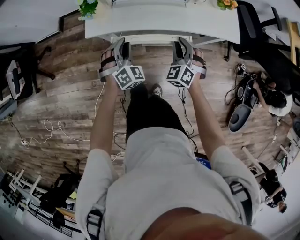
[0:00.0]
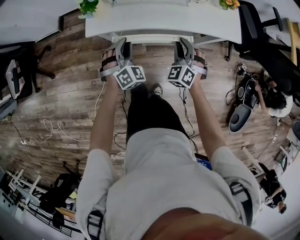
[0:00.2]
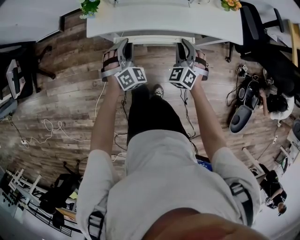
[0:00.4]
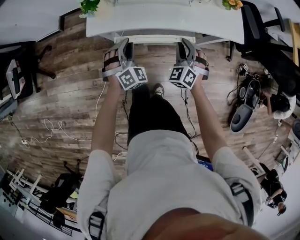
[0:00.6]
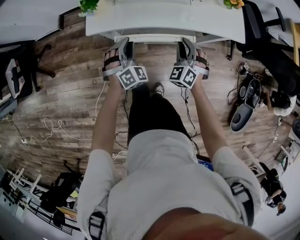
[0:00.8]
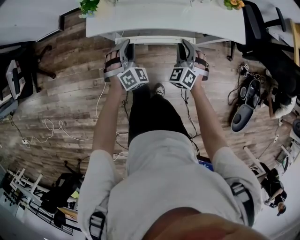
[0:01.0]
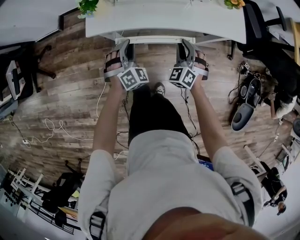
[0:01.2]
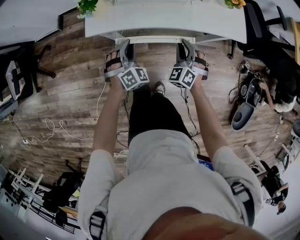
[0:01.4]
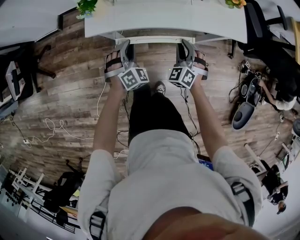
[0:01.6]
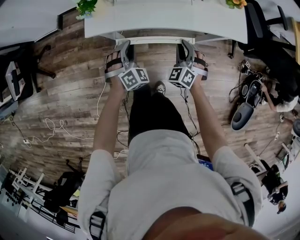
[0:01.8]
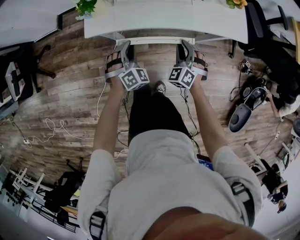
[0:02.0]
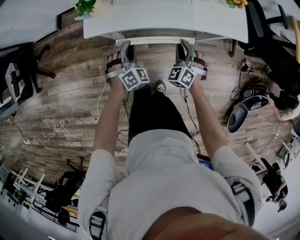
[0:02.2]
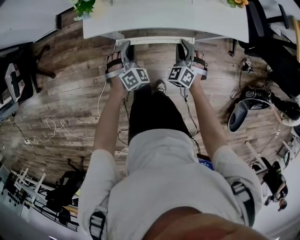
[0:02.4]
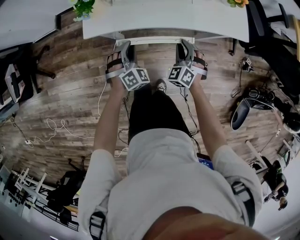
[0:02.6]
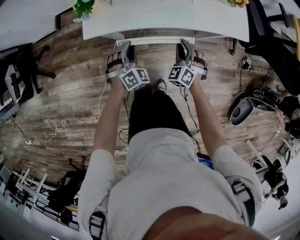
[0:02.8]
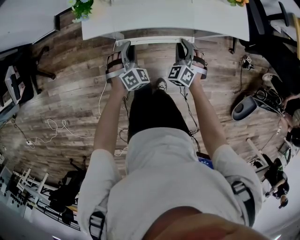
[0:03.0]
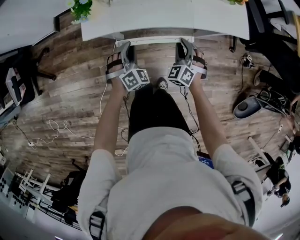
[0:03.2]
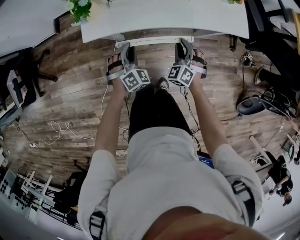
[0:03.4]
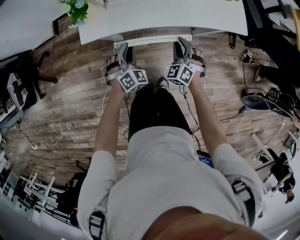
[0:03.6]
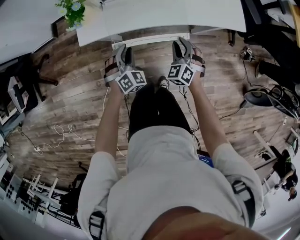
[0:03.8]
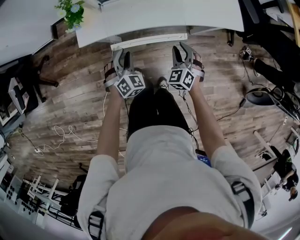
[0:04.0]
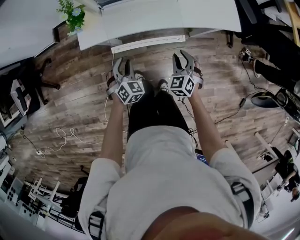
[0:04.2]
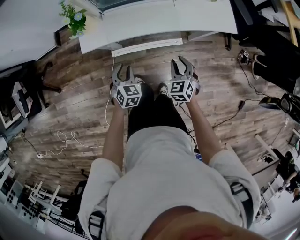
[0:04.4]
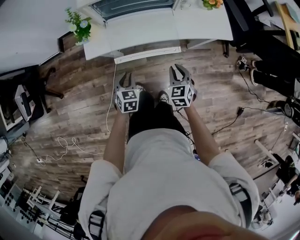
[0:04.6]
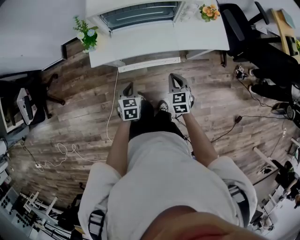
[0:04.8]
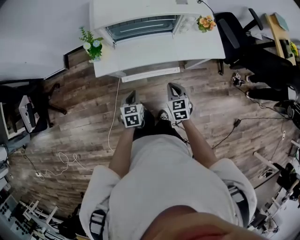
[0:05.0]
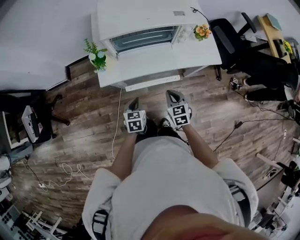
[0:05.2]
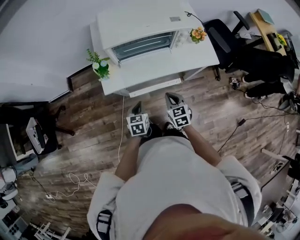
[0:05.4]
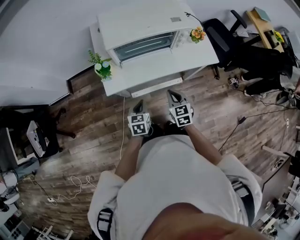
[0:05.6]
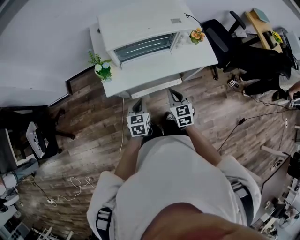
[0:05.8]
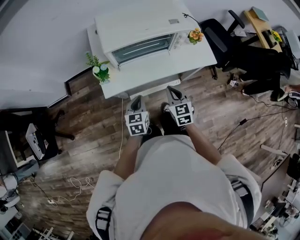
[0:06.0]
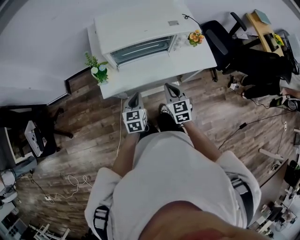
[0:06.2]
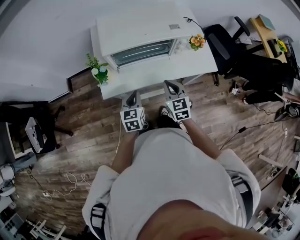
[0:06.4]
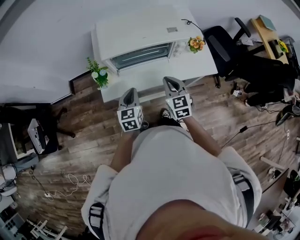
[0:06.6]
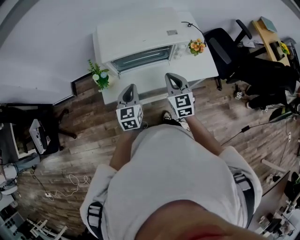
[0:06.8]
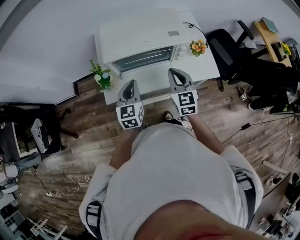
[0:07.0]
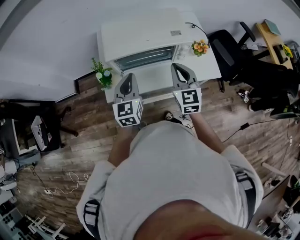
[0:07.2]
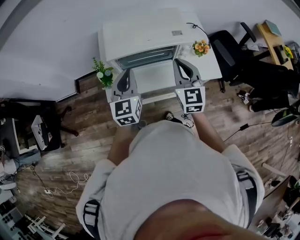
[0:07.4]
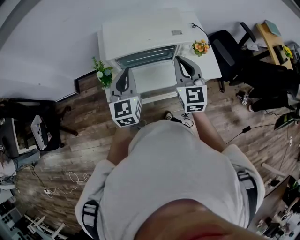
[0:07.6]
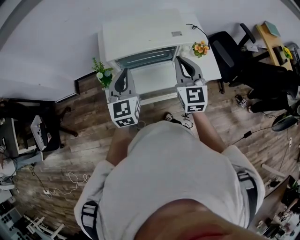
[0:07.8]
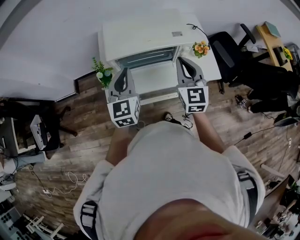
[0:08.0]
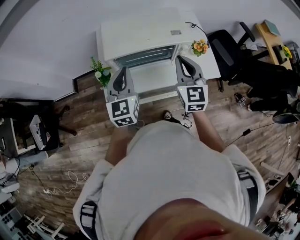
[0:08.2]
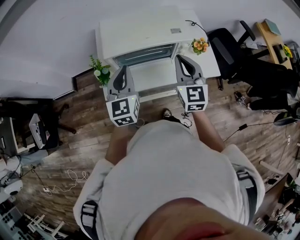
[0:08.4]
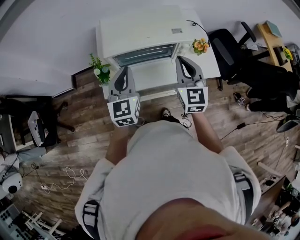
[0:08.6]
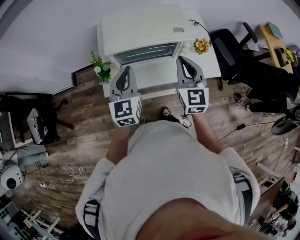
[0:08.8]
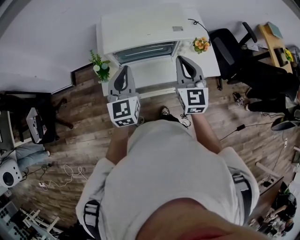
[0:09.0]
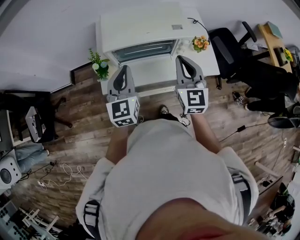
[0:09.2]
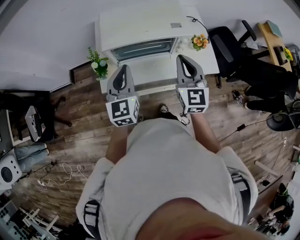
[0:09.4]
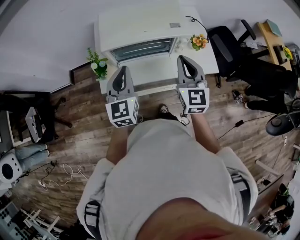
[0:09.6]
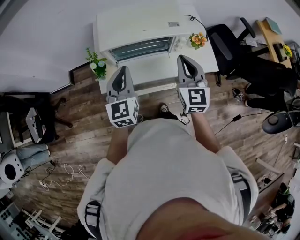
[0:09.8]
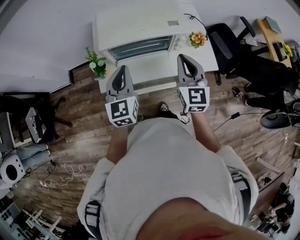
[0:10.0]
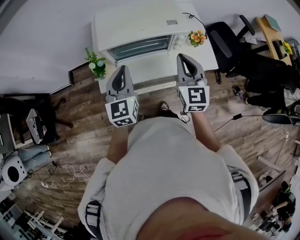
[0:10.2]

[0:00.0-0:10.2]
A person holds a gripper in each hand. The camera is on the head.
0:00.0 to 0:01.4: The grippers stay close to where they were, moving slightly.
0:01.4 to 0:03.0: There are only small adjustments of the grippers.
0:03.0 to 0:04.4: The grippers both shift backward by approximately 5 cm. The left gripper turns by some 30 degrees, while the right gripper turns by roughly 30 degrees.
0:04.4 to 0:05.8: The left gripper is displaced upward by roughly 15 cm, rotates about 30 degrees, and closes its fingers. Meanwhile the right gripper moves upward and to the left, roughly 15 cm, rotates approximately 20 degrees, and closes its fingers.
0:05.8 to 0:07.2: Both grippers travel together upward and forward, roughly 20 cm. The left gripper swivels roughly 30 degrees, while the right gripper turns by about 20 degrees.
0:07.2 to 0:10.2: The grippers make only small movements.

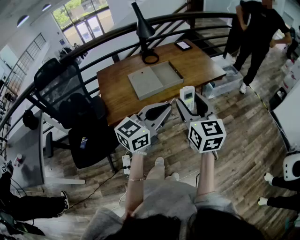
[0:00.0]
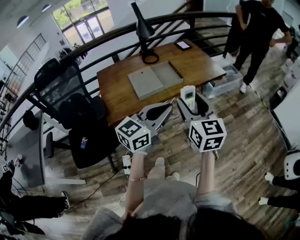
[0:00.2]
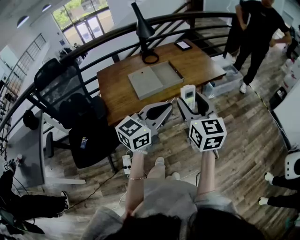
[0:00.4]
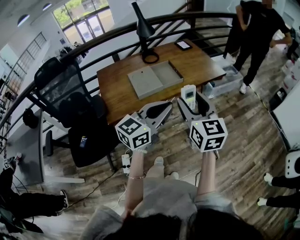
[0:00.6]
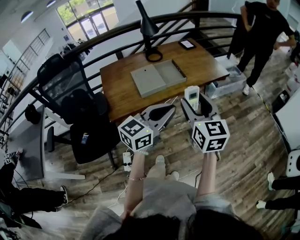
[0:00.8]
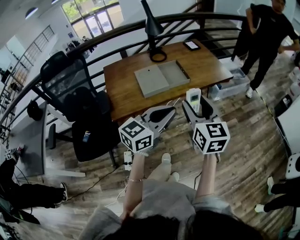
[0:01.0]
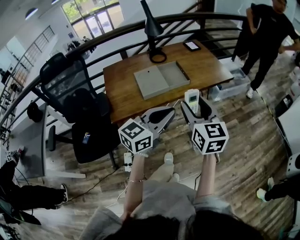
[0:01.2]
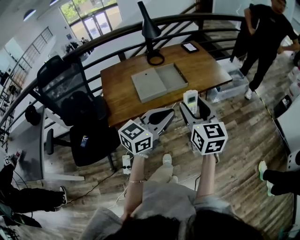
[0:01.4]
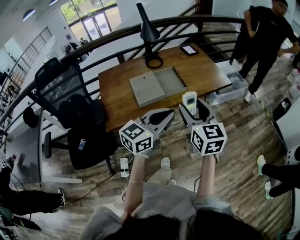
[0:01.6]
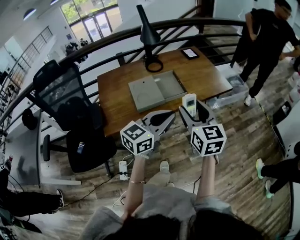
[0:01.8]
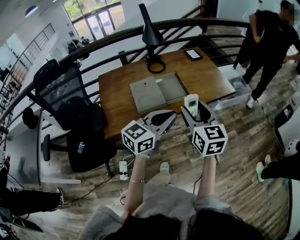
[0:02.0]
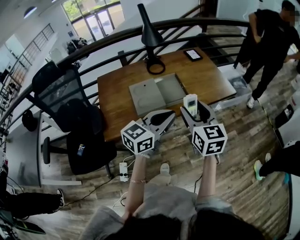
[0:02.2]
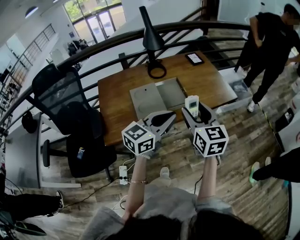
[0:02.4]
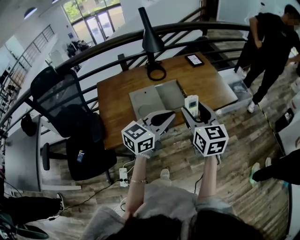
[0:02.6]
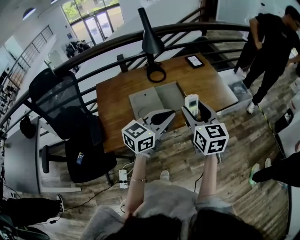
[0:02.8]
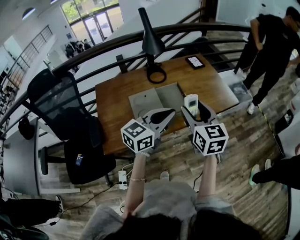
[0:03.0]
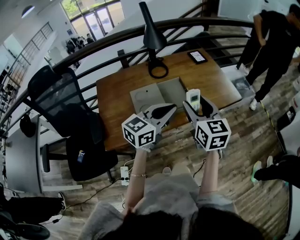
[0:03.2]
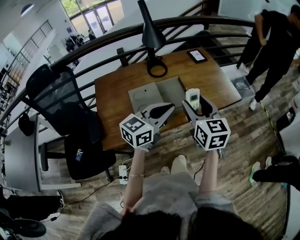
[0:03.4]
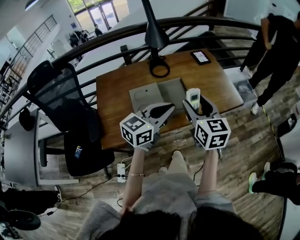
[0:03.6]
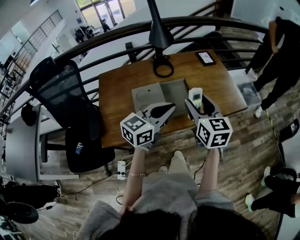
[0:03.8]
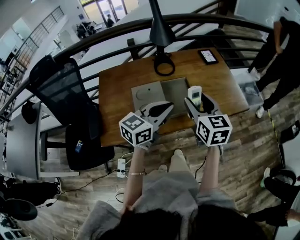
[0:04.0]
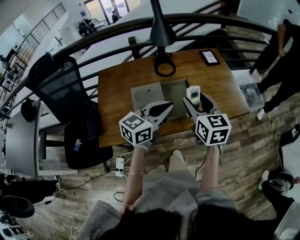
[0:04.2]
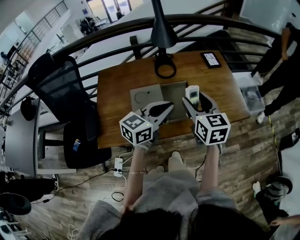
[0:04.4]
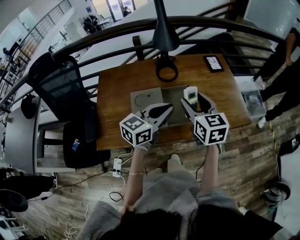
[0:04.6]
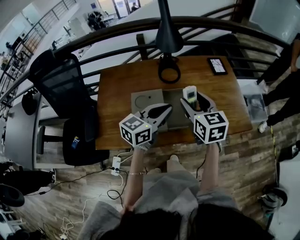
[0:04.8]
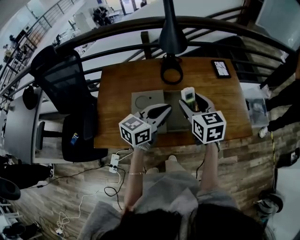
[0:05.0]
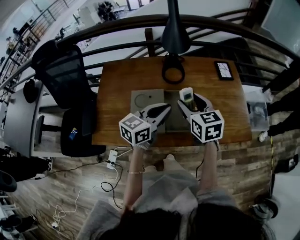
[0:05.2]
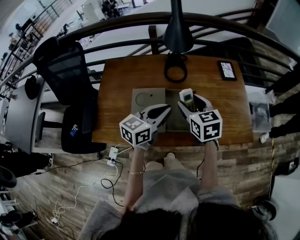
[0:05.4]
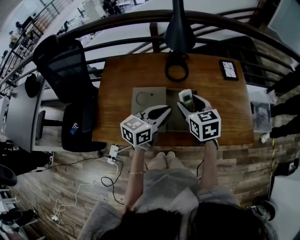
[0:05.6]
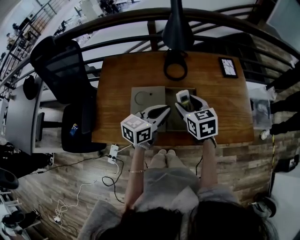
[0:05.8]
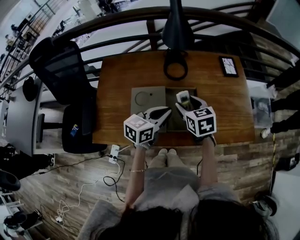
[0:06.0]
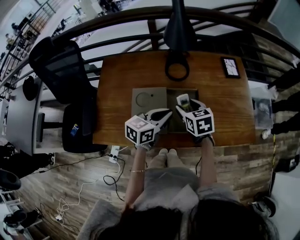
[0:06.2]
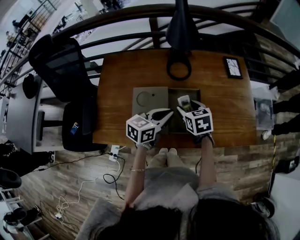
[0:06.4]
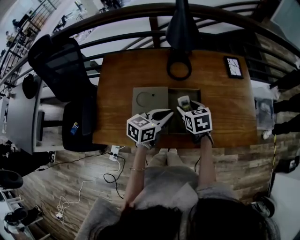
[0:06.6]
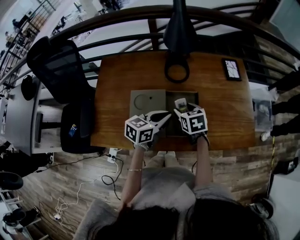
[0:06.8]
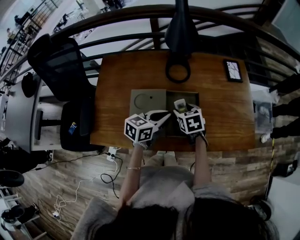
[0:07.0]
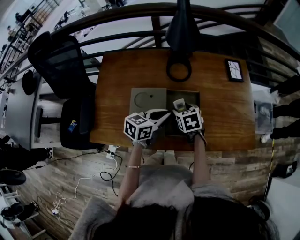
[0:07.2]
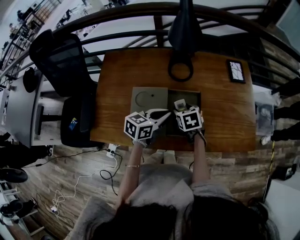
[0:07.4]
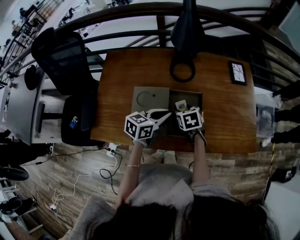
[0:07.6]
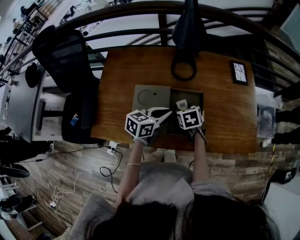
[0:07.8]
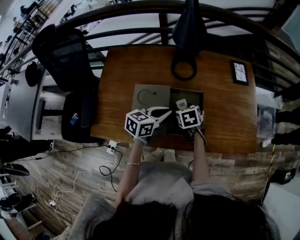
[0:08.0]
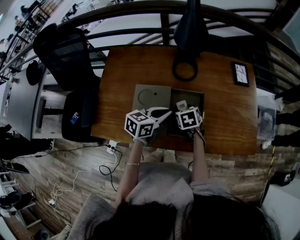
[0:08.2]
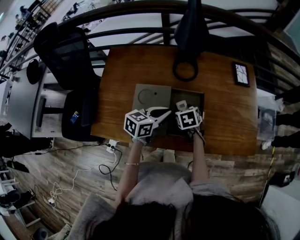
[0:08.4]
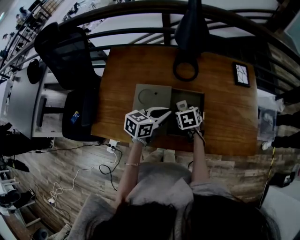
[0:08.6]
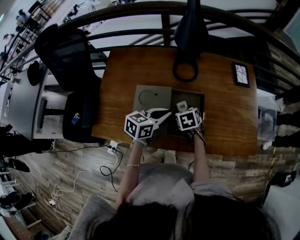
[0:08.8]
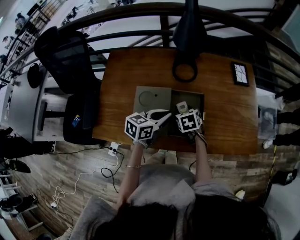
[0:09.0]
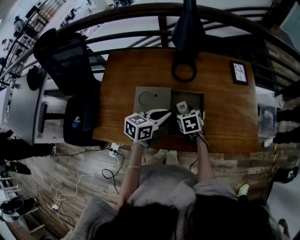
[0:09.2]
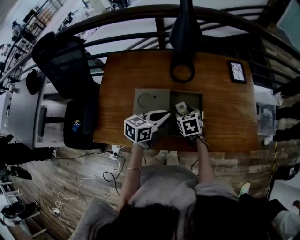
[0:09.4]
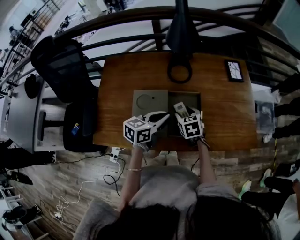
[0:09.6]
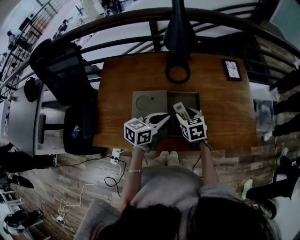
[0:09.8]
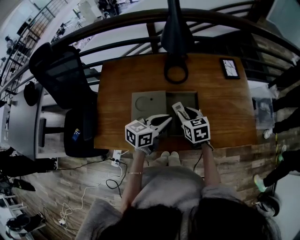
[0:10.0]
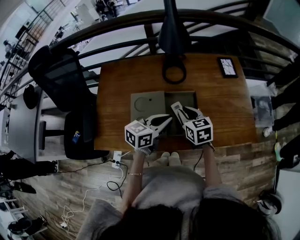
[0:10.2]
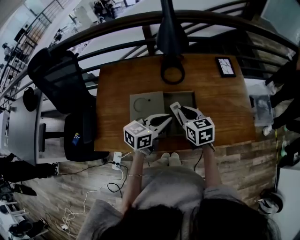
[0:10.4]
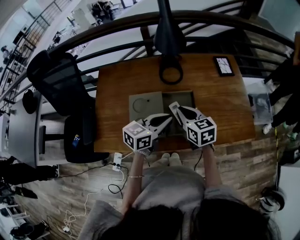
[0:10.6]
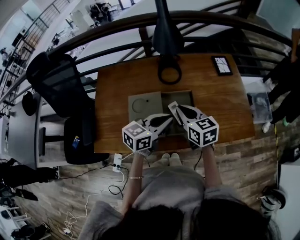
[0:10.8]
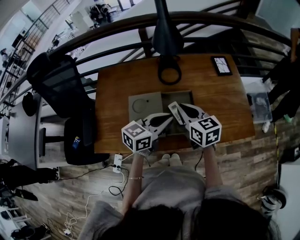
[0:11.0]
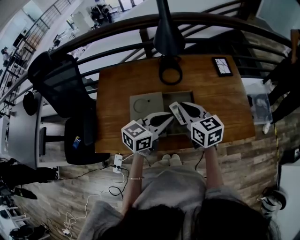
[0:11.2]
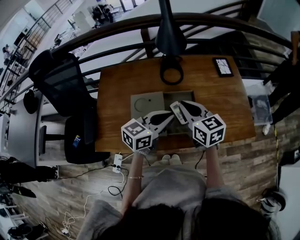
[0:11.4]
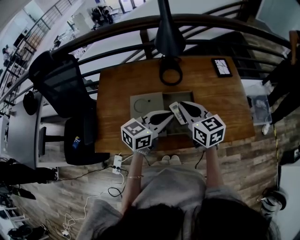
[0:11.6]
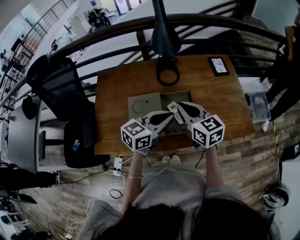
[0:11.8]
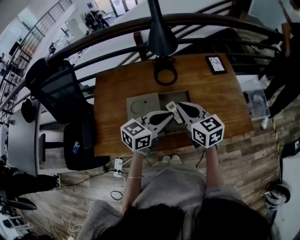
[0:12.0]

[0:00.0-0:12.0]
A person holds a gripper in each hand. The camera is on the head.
0:00.0 to 0:01.6: Both grippers move forward, some 5 cm.
0:01.6 to 0:03.0: Both grippers travel together forward, roughly 15 cm.
0:03.0 to 0:04.4: Both grippers move forward, roughly 10 cm.
0:04.4 to 0:06.0: The grippers both shift downward and forward by about 15 cm. The right gripper swivels approximately 30 degrees.
0:06.0 to 0:07.6: The left gripper travels downward by some 5 cm, while the right gripper goes some 15 cm downward.
0:07.6 to 0:09.0: The grippers move only a little.
0:09.0 to 0:10.4: The right gripper is displaced upward by roughly 15 cm, turns by some 30 degrees, and closes its fingers; the left gripper shifts by about 5 cm.
0:10.4 to 0:12.0: The right gripper goes some 10 cm upward, while the left gripper is displaced upward by some 5 cm.

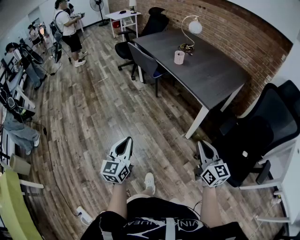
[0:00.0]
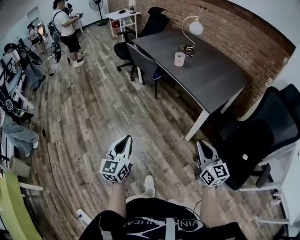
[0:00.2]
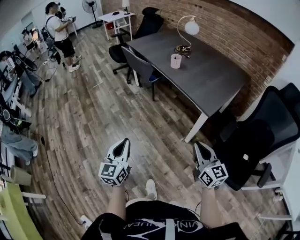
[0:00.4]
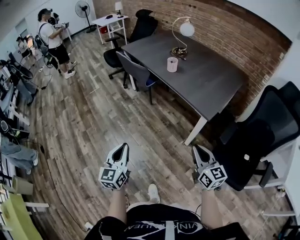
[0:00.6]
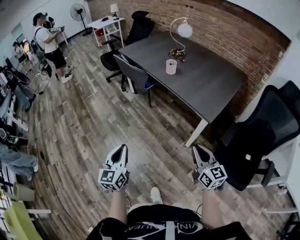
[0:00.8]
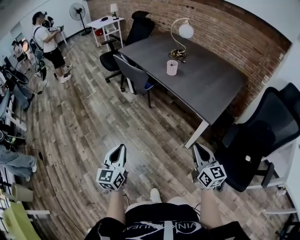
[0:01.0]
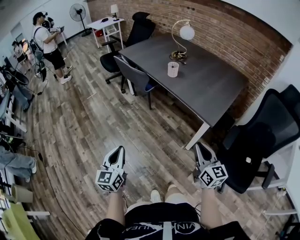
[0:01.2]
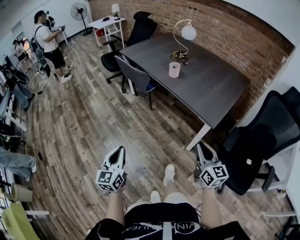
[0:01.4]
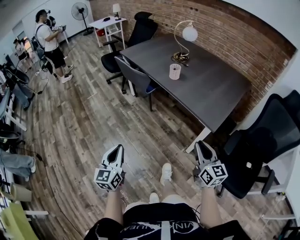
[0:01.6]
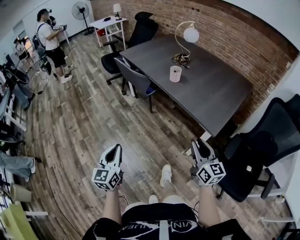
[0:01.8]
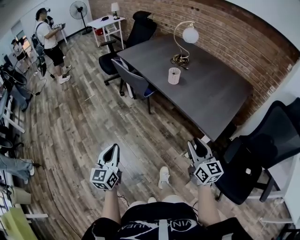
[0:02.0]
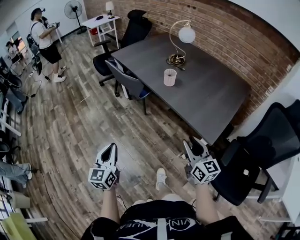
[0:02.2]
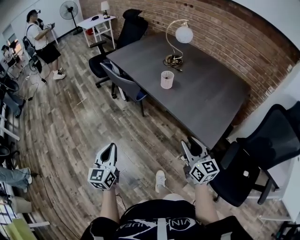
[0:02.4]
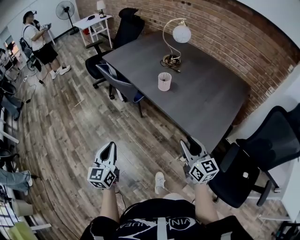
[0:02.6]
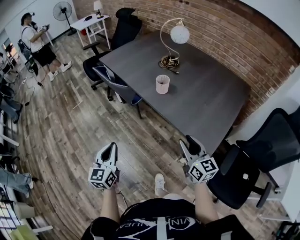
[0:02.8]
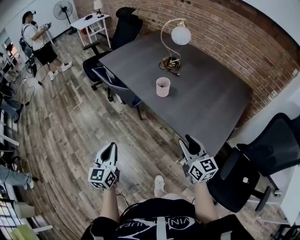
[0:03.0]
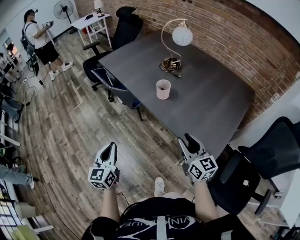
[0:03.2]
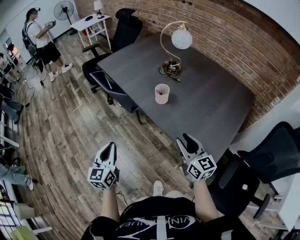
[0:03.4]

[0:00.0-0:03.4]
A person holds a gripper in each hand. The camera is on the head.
0:00.0 to 0:01.6: Both grippers travel together forward, roughly 20 cm.
0:01.6 to 0:03.4: Both grippers move forward, about 30 cm. The right gripper opens its fingers.
